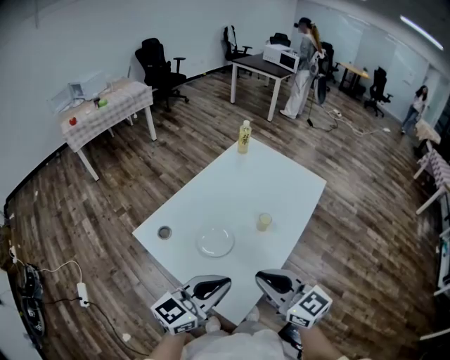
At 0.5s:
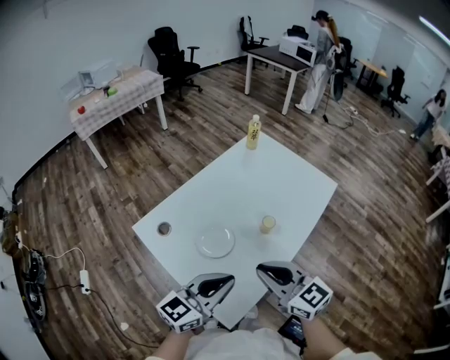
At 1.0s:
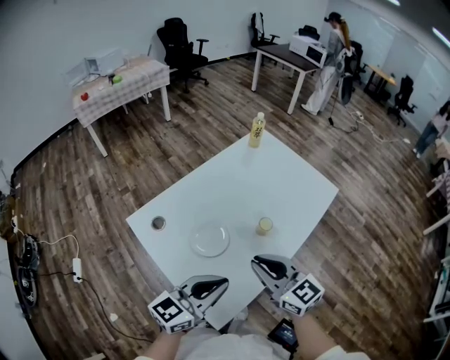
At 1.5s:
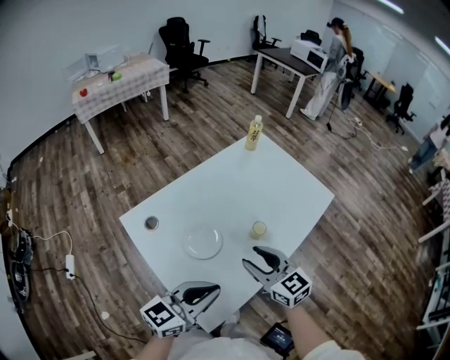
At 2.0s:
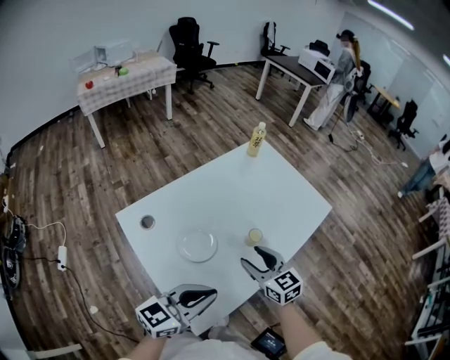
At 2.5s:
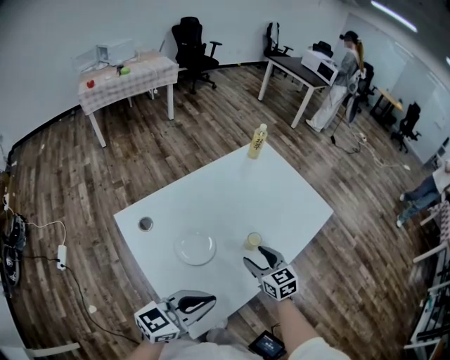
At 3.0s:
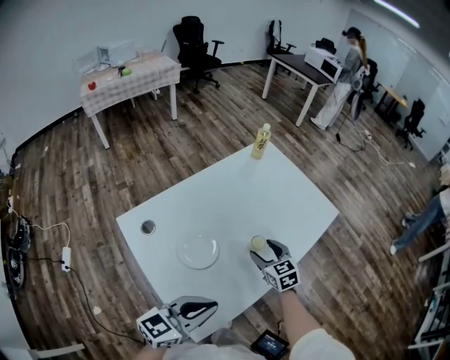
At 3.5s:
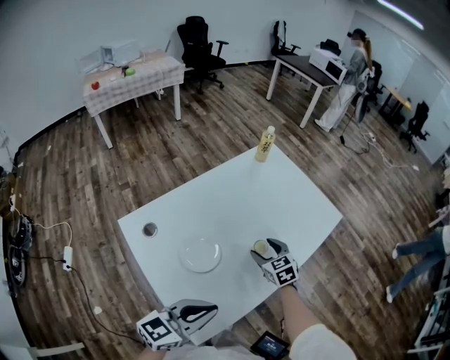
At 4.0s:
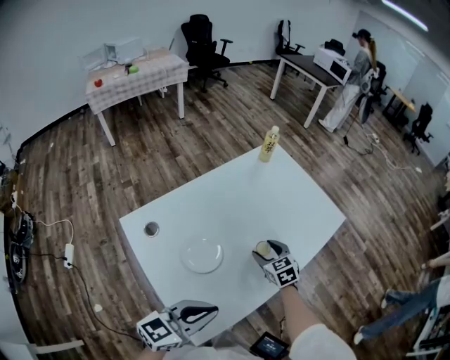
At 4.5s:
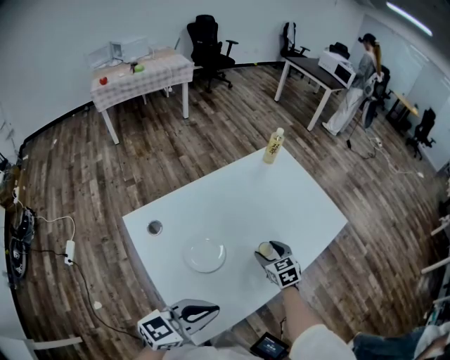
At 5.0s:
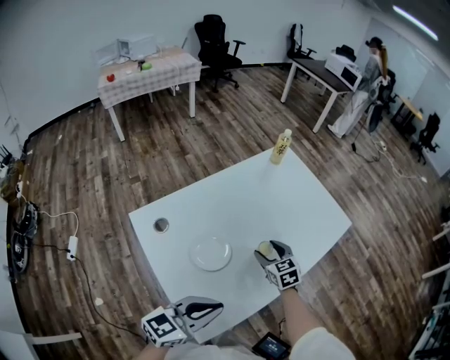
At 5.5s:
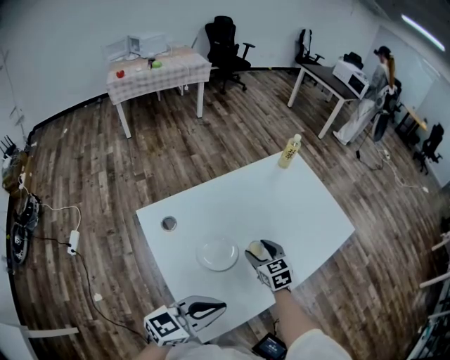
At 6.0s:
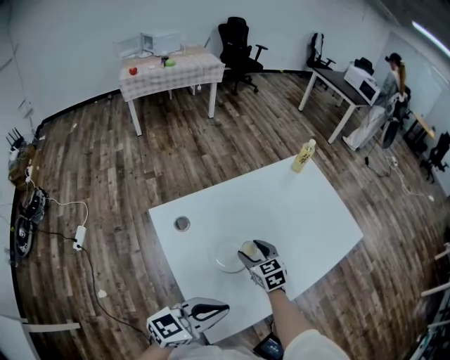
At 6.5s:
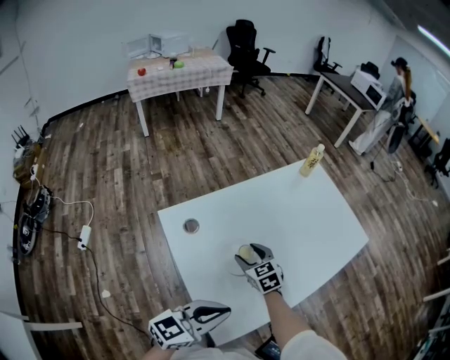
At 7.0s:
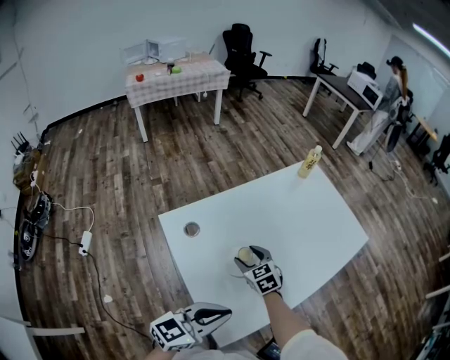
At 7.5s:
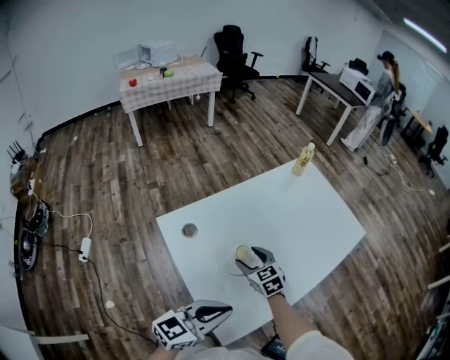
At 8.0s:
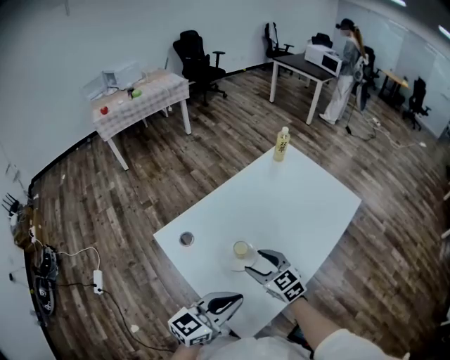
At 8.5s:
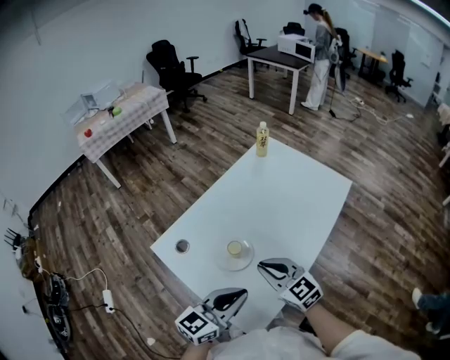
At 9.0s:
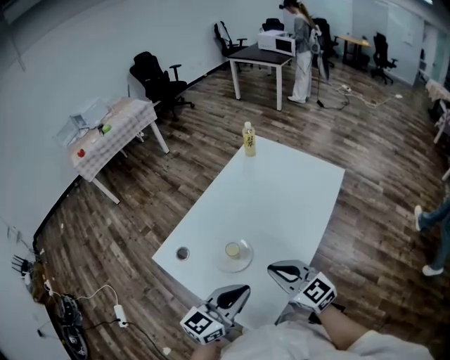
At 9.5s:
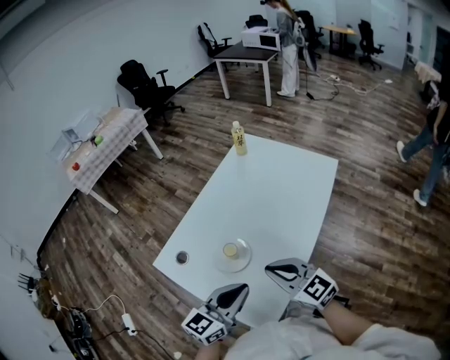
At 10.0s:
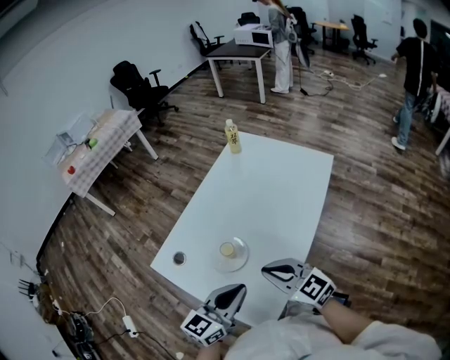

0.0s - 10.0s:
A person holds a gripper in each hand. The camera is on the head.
0.0s - 2.0s: The left gripper moves to the right, roughly 5 cm. The right gripper is displaced forward and downward by approximately 20 cm, and opens its fingers.
2.0s - 4.0s: The right gripper is displaced downward and forward by some 15 cm, and changes its angle by roughly 20 degrees.
4.0s - 6.0s: The right gripper moves to the left, roughly 15 cm.
6.0s - 8.0s: The right gripper is displaced backward and upward by about 10 cm.
8.0s - 10.0s: The right gripper heads upward, backward and to the right, covering roughly 15 cm, and closes up.

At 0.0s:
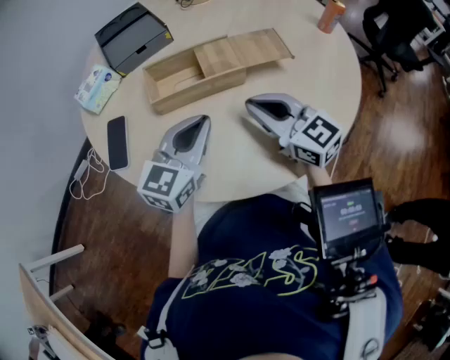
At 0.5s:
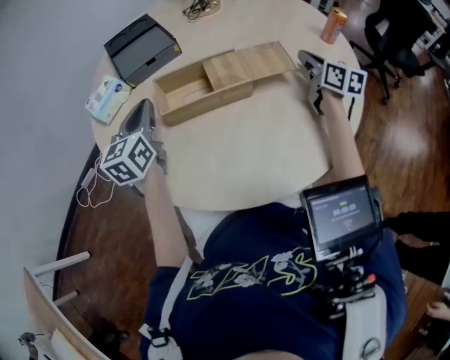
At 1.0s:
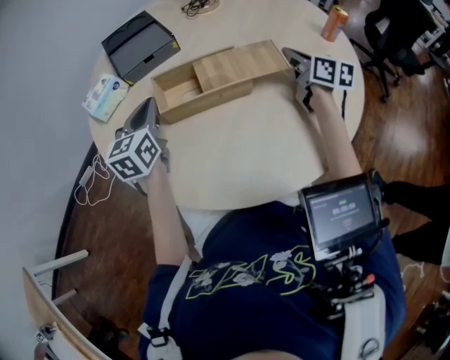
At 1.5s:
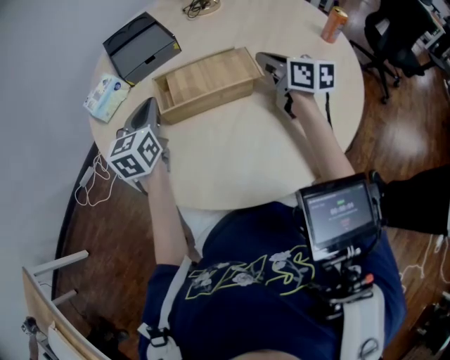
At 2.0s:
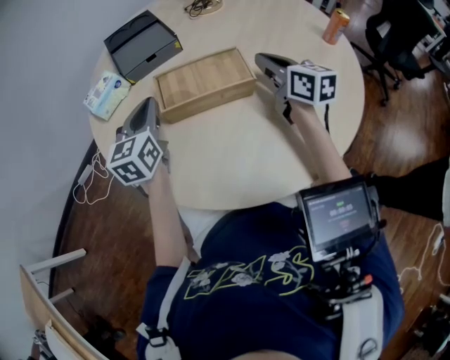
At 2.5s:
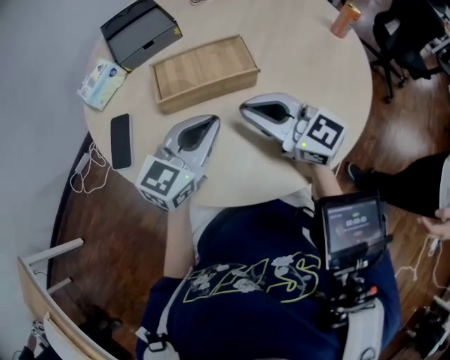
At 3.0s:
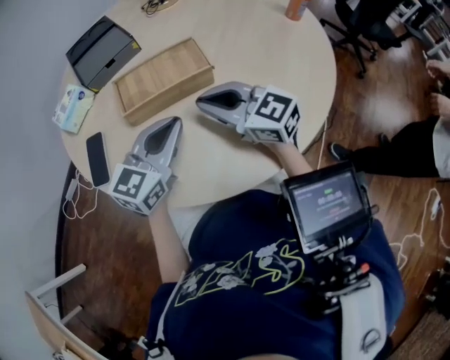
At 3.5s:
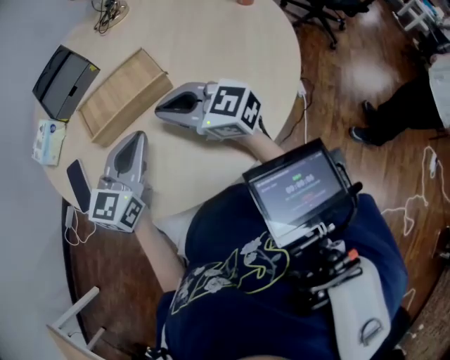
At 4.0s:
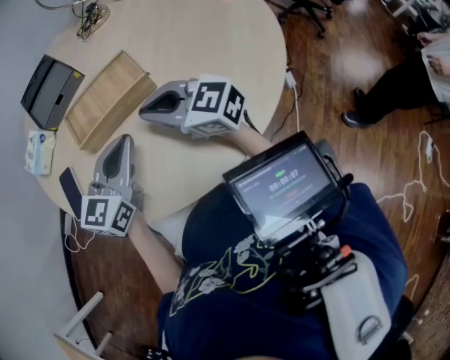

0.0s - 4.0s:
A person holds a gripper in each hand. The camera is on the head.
0.0s - 2.0s: The right gripper moves forward and to the right, some 15 cm, and swivels roughly 30 degrees. Meanwhile the left gripper moves to the left and forward, some 15 cm, and swivels about 30 degrees.
2.0s - 4.0s: The right gripper moves backward and to the left, approximately 15 cm, and turns by about 30 degrees. The left gripper travels to the right and backward by approximately 15 cm, and changes its angle by about 30 degrees.

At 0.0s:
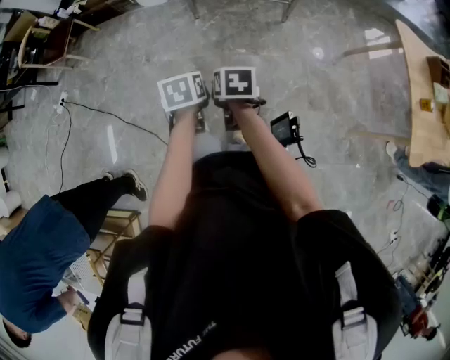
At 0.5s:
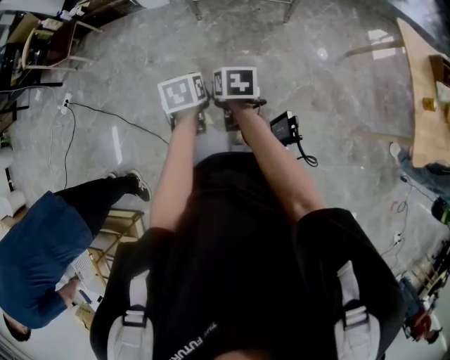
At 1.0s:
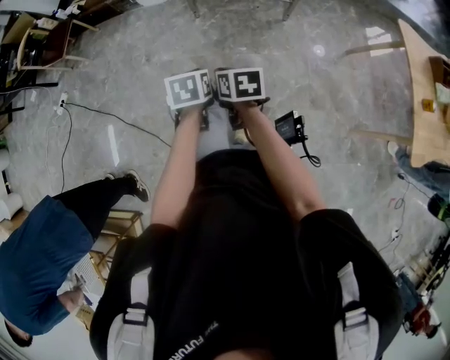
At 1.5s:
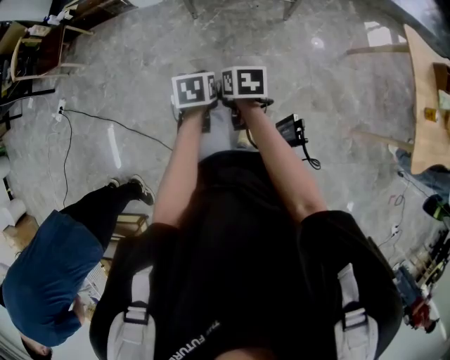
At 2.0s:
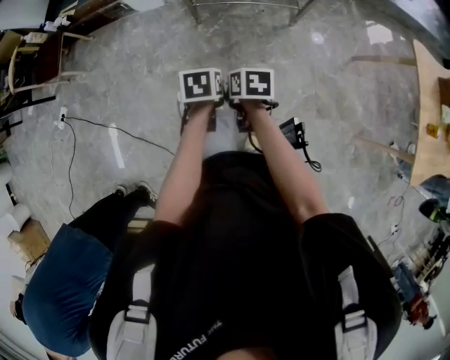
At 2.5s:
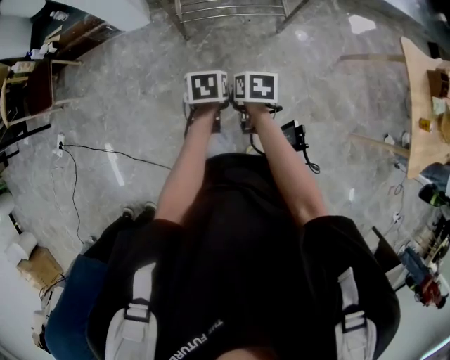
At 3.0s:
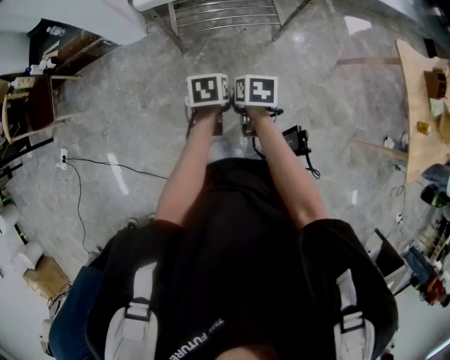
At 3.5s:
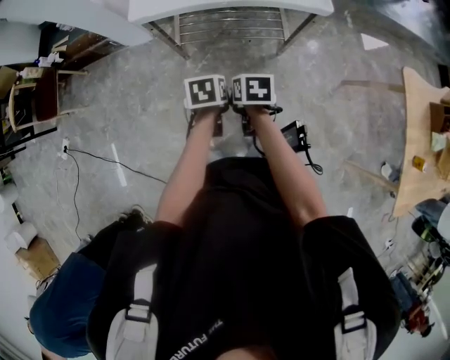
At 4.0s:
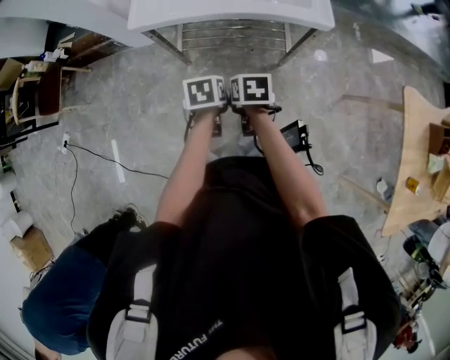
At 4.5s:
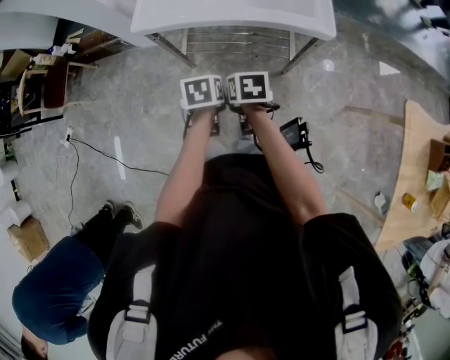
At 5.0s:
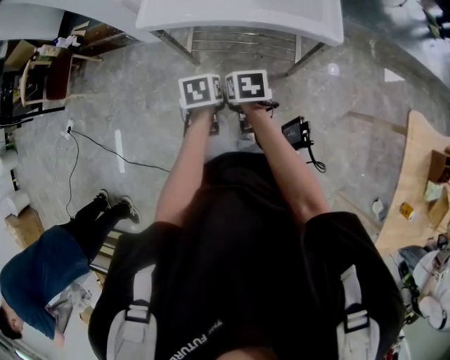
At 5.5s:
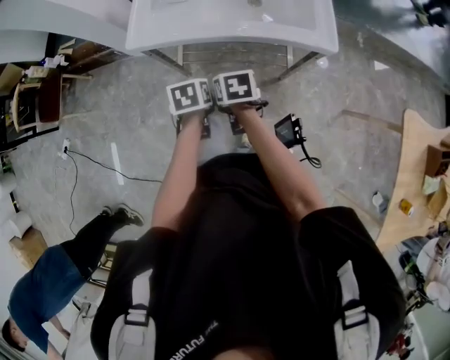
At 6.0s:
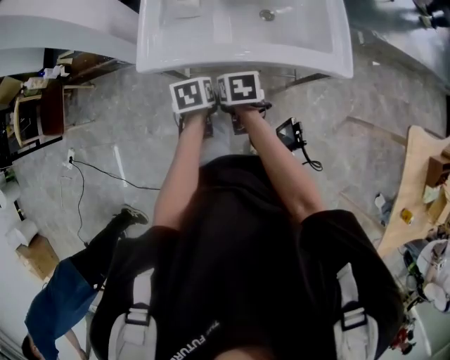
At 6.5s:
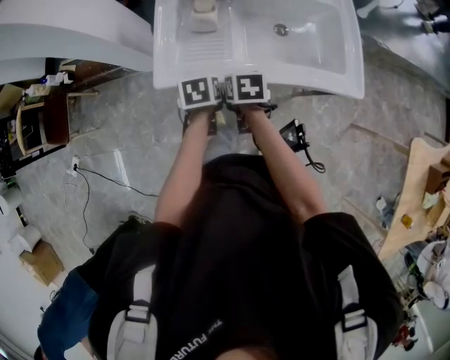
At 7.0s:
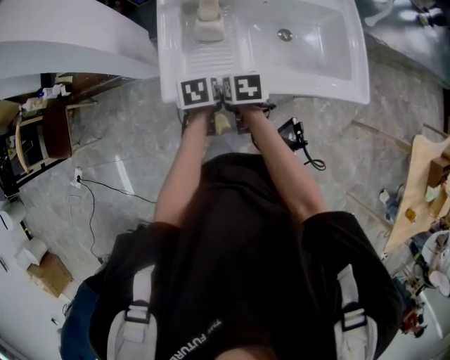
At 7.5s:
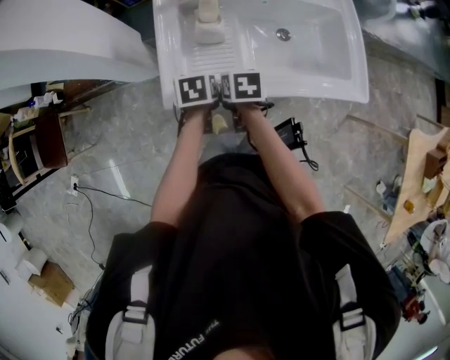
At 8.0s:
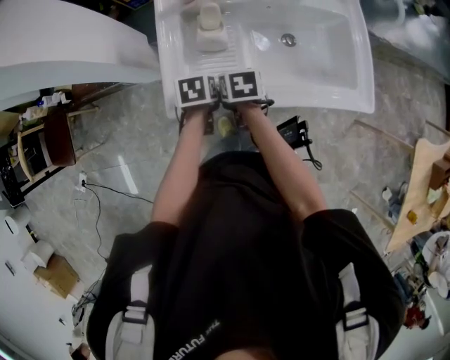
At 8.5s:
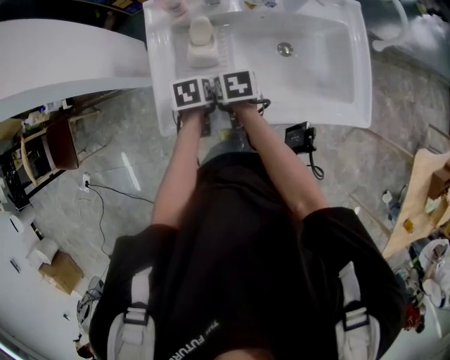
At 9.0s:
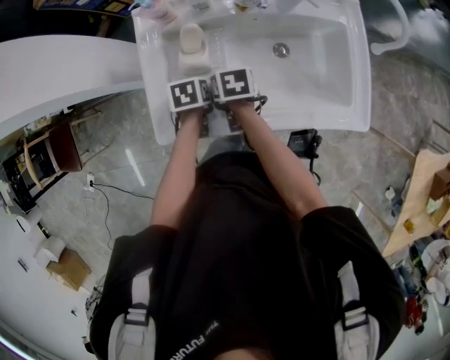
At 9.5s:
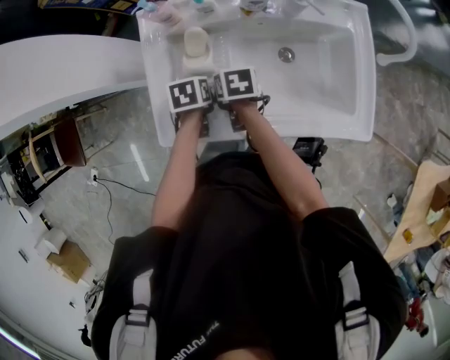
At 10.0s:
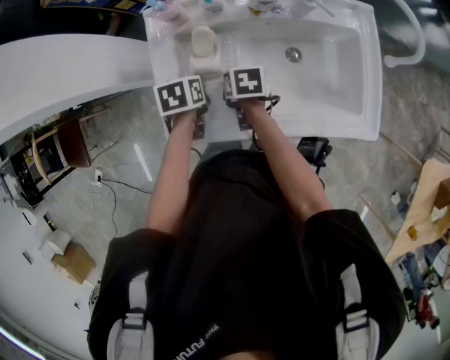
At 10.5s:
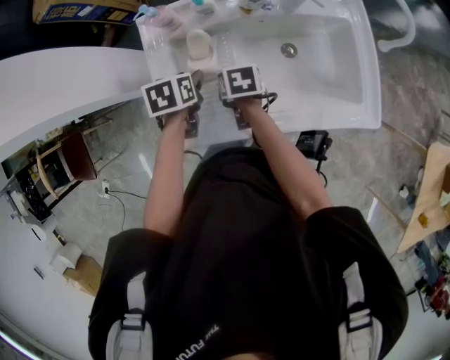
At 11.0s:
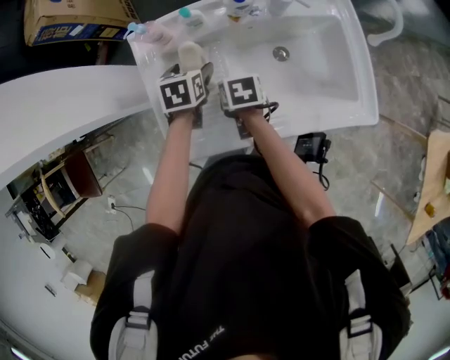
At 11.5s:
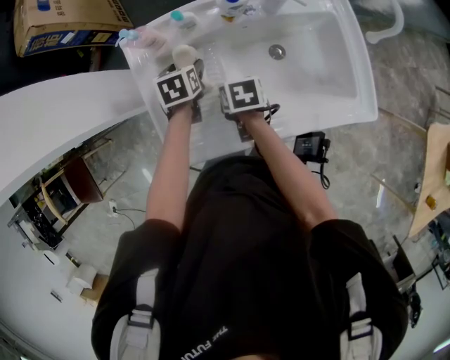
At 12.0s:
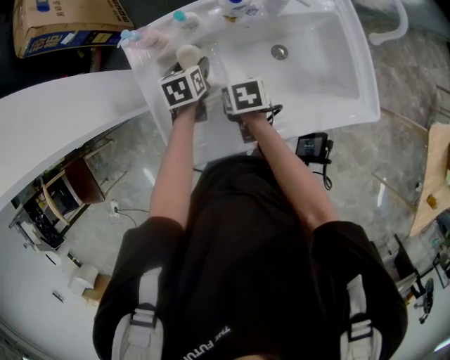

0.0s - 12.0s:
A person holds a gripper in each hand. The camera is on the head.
0.0s - 2.0s: Both grippers move forward, about 20 cm.
2.0s - 4.0s: The two grippers go some 35 cm forward and to the right.
4.0s - 6.0s: Both grippers travel together forward, about 25 cm.
6.0s - 8.0s: The left gripper heads forward, covering approximately 20 cm; the right gripper travels forward and to the left by about 20 cm.
8.0s - 10.0s: The left gripper travels forward by about 10 cm, while the right gripper moves forward and to the right, about 10 cm.
10.0s - 12.0s: The left gripper goes about 10 cm forward and to the right, and opens its fingers.

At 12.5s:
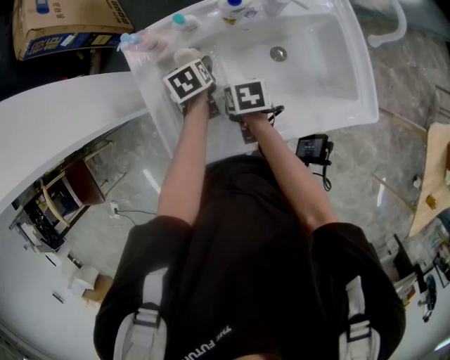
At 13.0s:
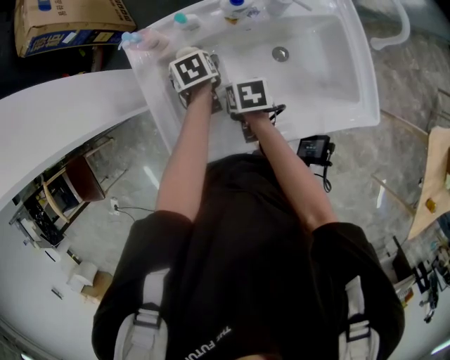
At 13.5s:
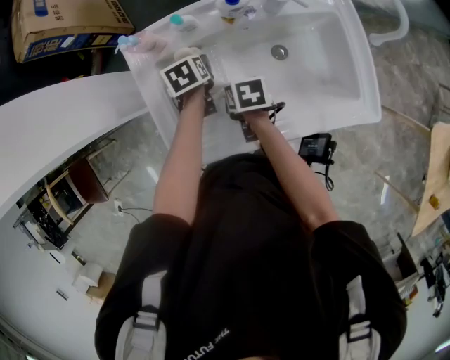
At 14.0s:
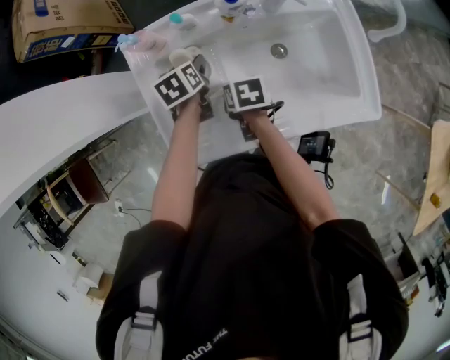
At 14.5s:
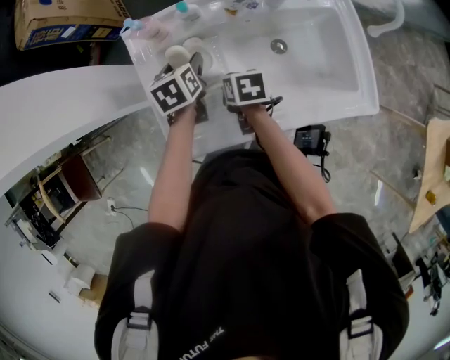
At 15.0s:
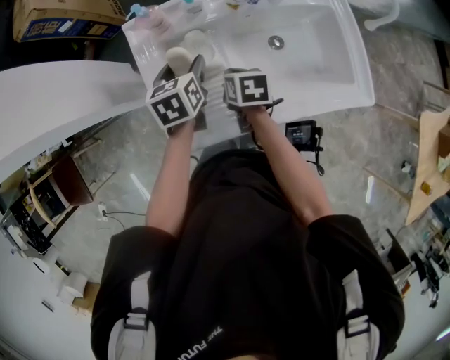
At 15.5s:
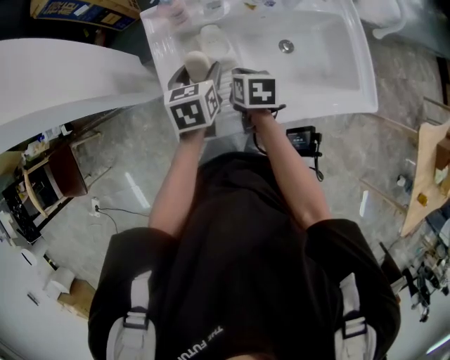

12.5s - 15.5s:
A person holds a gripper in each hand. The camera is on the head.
12.5s - 14.0s: The grippers move only a little.
14.0s - 15.5s: The right gripper is displaced to the left and upward by some 10 cm. The left gripper is displaced backward, upward and to the left by approximately 15 cm.
